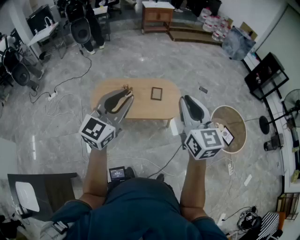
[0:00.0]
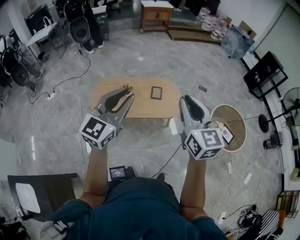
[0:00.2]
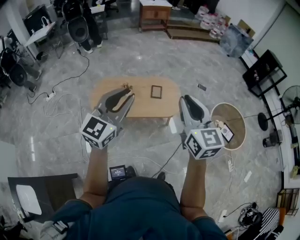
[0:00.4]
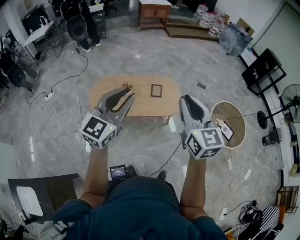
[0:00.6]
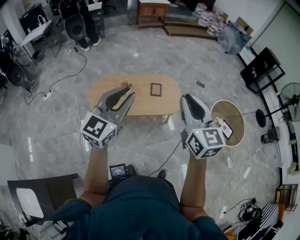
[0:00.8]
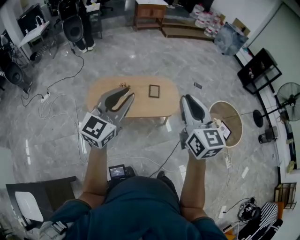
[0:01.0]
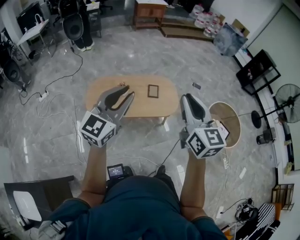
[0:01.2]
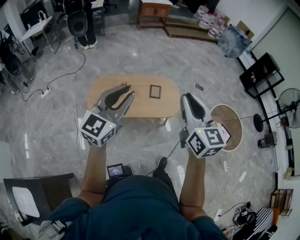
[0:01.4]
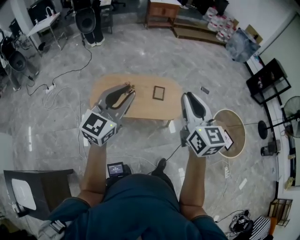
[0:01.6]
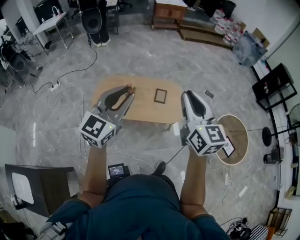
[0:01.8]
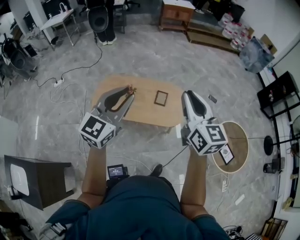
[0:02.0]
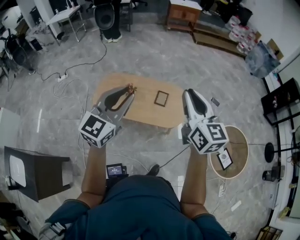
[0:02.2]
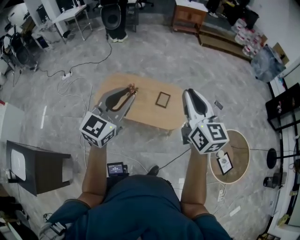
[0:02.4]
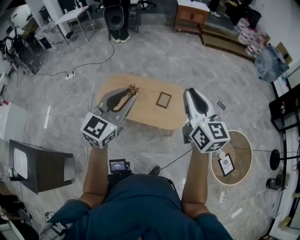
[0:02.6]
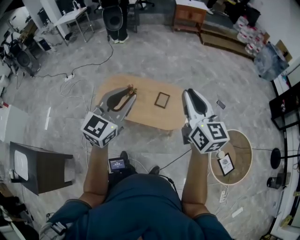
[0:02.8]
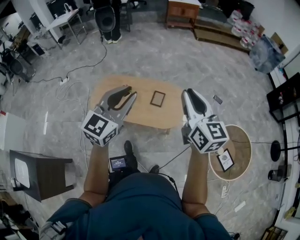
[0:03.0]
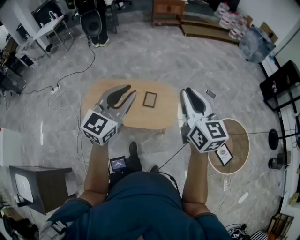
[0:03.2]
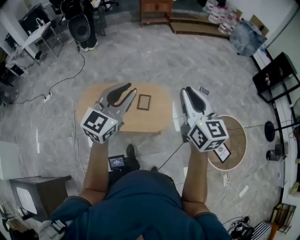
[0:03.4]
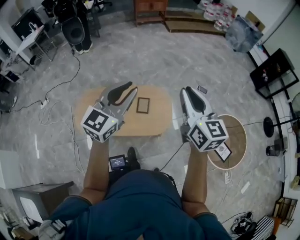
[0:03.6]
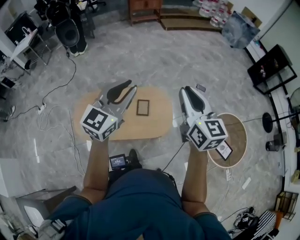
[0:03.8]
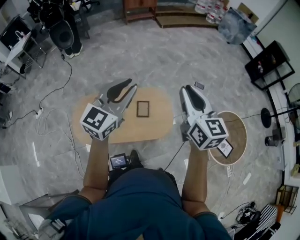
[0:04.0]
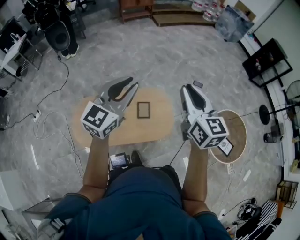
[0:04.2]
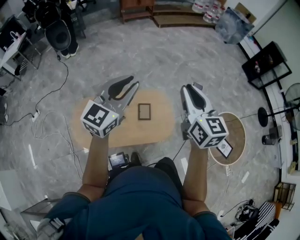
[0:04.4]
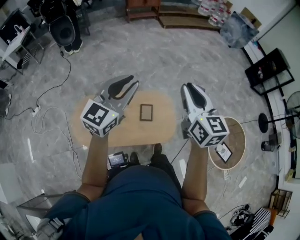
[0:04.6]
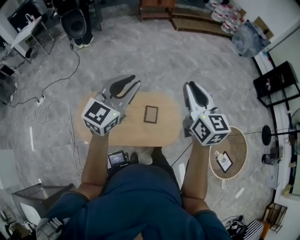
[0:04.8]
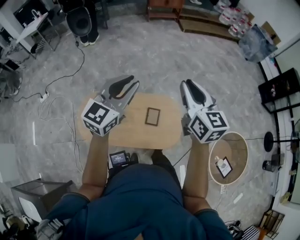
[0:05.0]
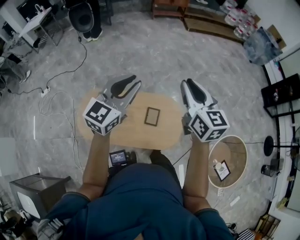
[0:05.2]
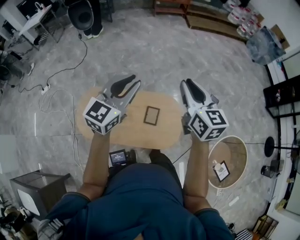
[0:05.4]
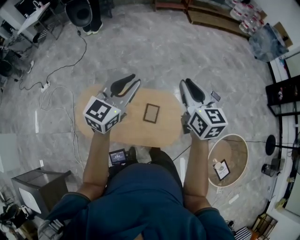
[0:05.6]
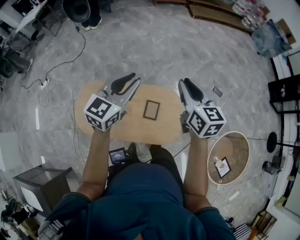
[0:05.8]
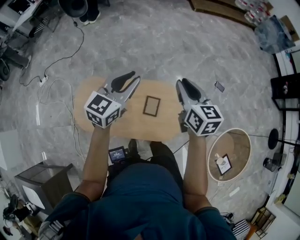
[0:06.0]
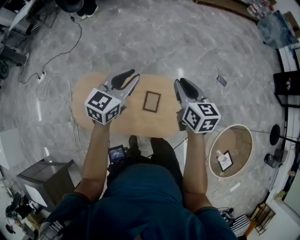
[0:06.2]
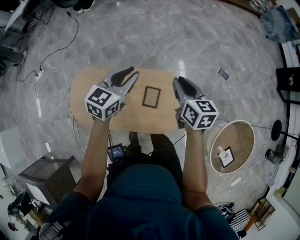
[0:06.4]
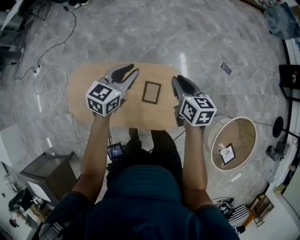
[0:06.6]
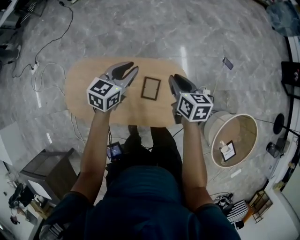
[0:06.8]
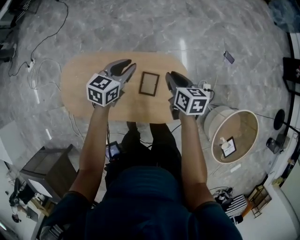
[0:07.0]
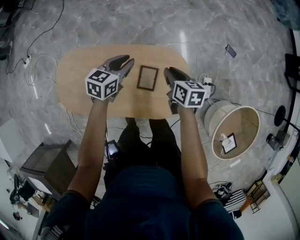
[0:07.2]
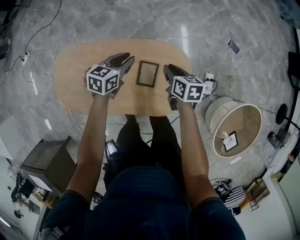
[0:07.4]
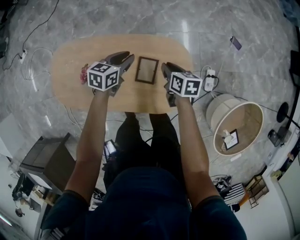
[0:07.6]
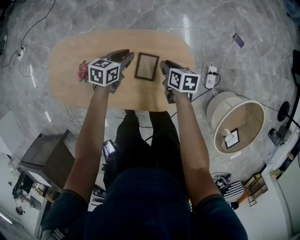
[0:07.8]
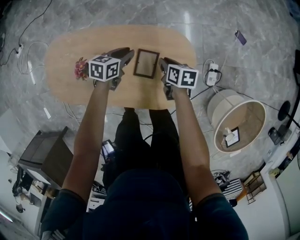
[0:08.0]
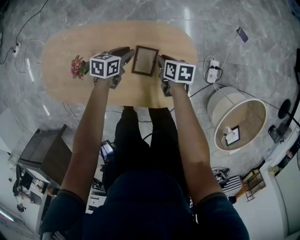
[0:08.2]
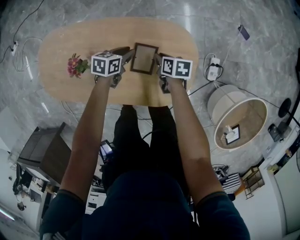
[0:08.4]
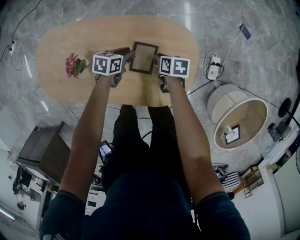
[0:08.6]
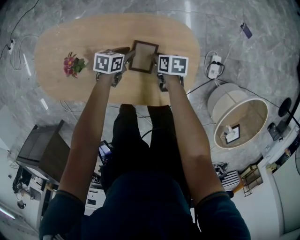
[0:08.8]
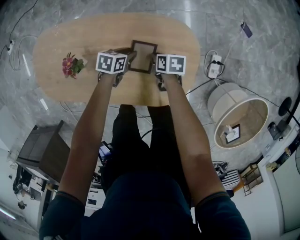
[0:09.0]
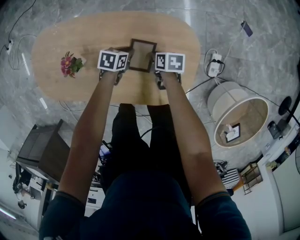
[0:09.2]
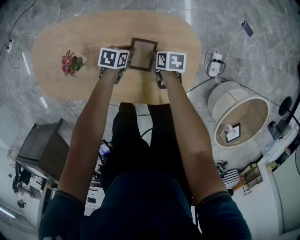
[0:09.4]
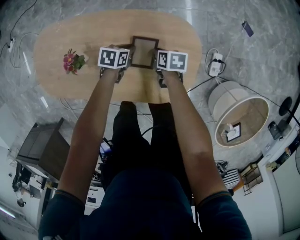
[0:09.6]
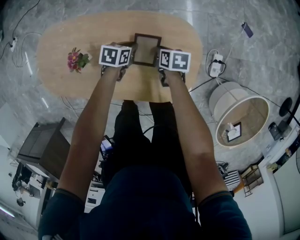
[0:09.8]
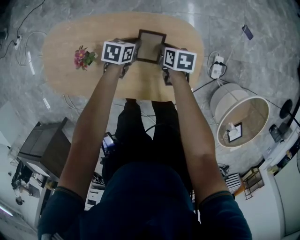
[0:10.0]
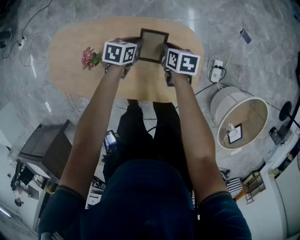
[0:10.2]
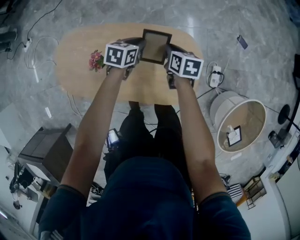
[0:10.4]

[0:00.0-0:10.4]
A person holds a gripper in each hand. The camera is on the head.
0:00.0 to 0:01.4: The left gripper goes roughly 5 cm to the left. Meanwhile the right gripper changes place by roughly 5 cm.
0:01.4 to 0:03.0: Both grippers move to the right and forward, some 25 cm.
0:03.0 to 0:04.4: Both grippers travel together forward, some 25 cm. The left gripper changes its angle by some 20 degrees, while the right gripper rotates approximately 20 degrees.
0:04.4 to 0:06.0: The grippers both shift forward and downward by some 25 cm. The left gripper changes its angle by roughly 20 degrees, while the right gripper swivels some 20 degrees.
0:06.0 to 0:07.4: Both grippers move downward, some 40 cm. The left gripper turns by approximately 30 degrees. Meanwhile the right gripper changes its angle by approximately 30 degrees.
0:07.4 to 0:09.0: The grippers both shift downward by roughly 25 cm. The left gripper swivels approximately 30 degrees, while the right gripper changes its angle by roughly 20 degrees.
0:09.0 to 0:10.4: The grippers both shift upward by roughly 20 cm. The right gripper turns by some 20 degrees.

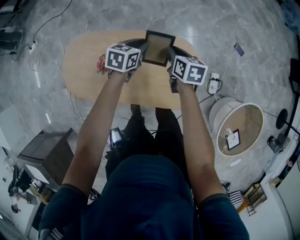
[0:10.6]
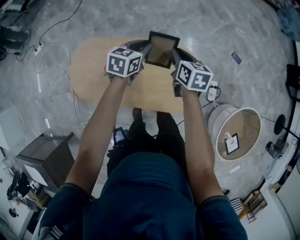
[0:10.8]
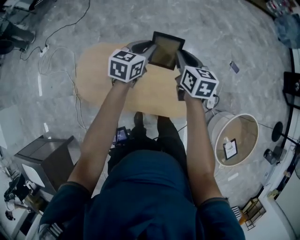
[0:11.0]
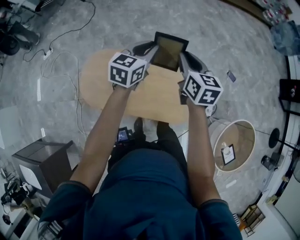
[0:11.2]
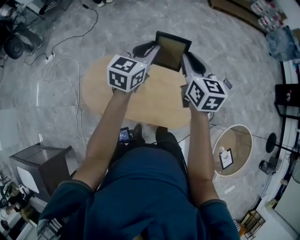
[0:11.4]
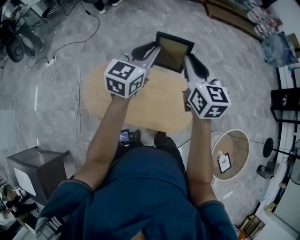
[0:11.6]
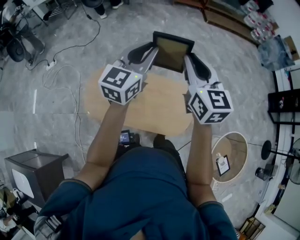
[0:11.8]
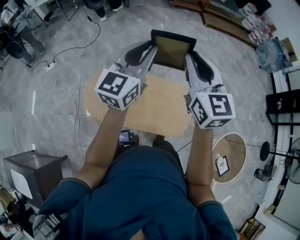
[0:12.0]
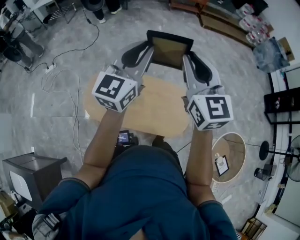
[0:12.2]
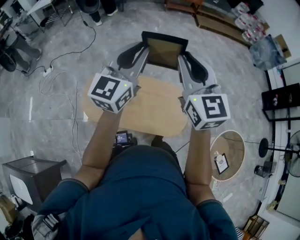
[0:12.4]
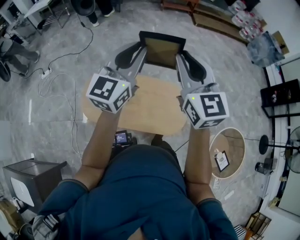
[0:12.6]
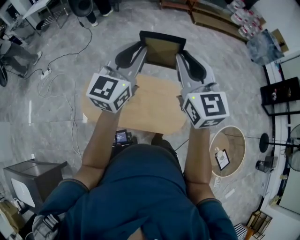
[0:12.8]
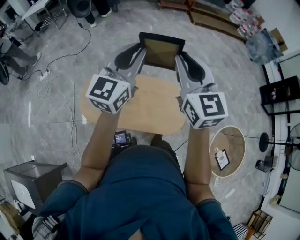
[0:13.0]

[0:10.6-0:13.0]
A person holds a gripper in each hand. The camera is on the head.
0:10.6 to 0:11.8: Both grippers move upward, approximately 50 cm. The right gripper tips its fingers upward by approximately 30 degrees, while the left gripper tips its fingers upward by about 40 degrees.
0:11.8 to 0:13.0: The two grippers go roughly 5 cm backward.

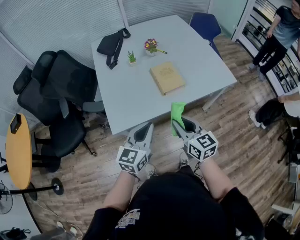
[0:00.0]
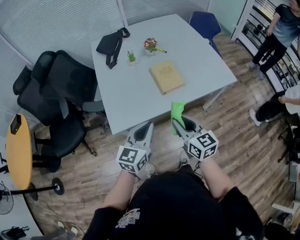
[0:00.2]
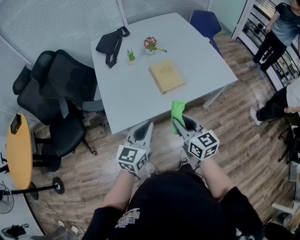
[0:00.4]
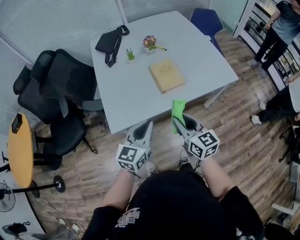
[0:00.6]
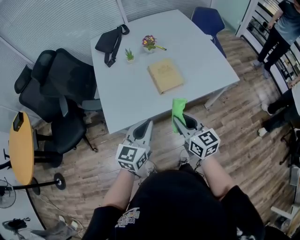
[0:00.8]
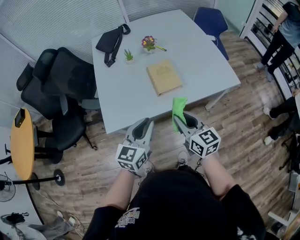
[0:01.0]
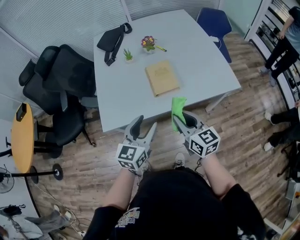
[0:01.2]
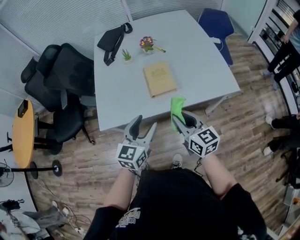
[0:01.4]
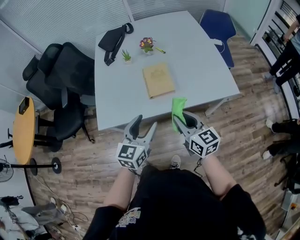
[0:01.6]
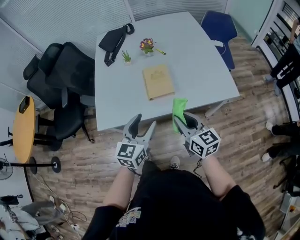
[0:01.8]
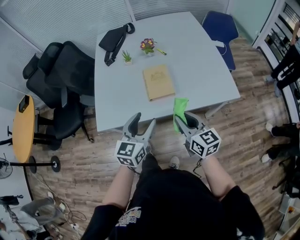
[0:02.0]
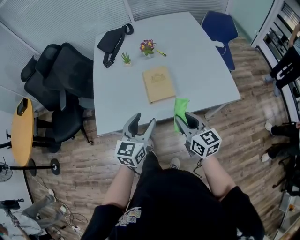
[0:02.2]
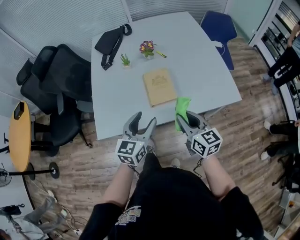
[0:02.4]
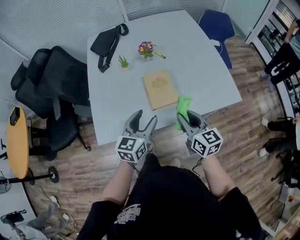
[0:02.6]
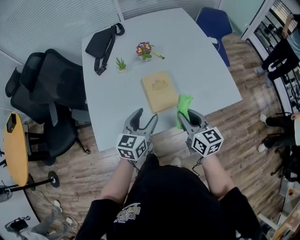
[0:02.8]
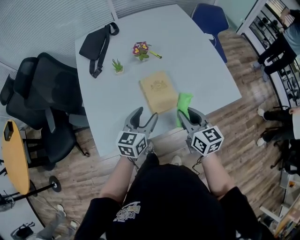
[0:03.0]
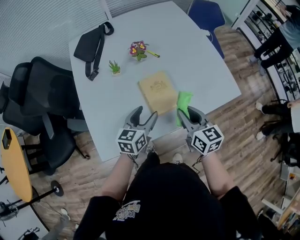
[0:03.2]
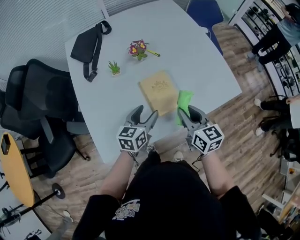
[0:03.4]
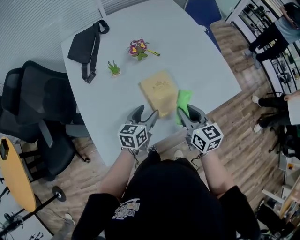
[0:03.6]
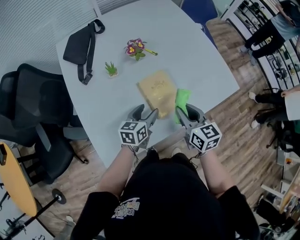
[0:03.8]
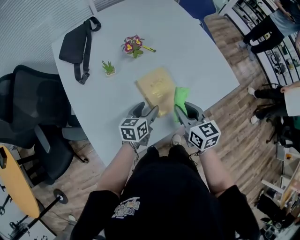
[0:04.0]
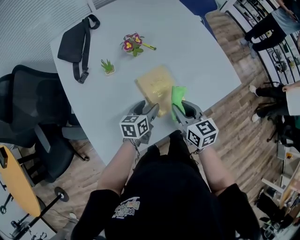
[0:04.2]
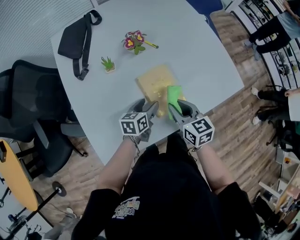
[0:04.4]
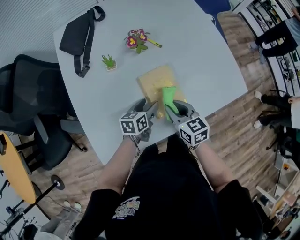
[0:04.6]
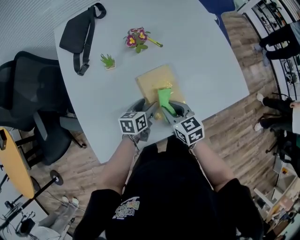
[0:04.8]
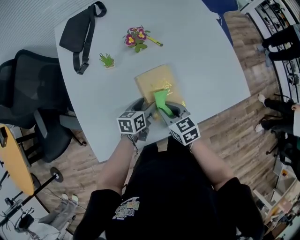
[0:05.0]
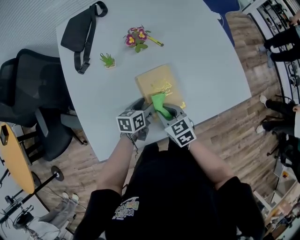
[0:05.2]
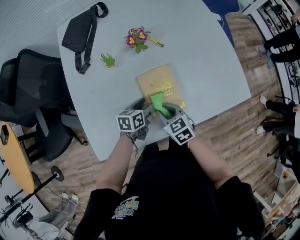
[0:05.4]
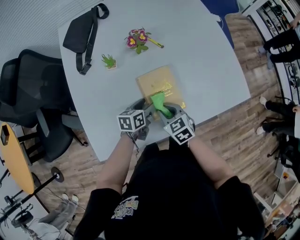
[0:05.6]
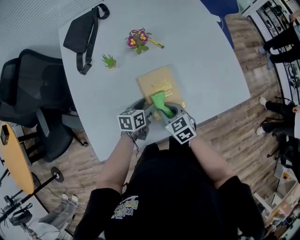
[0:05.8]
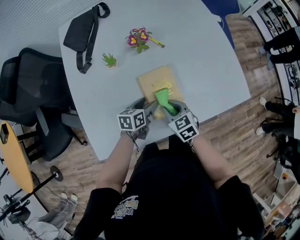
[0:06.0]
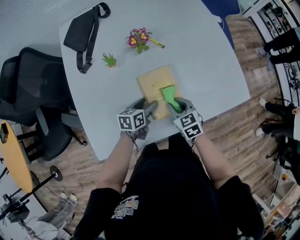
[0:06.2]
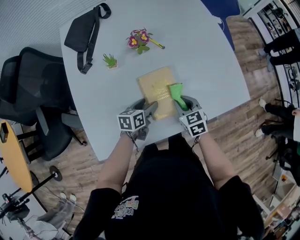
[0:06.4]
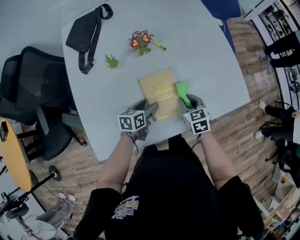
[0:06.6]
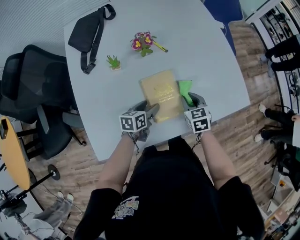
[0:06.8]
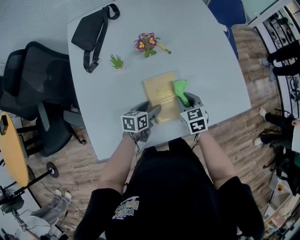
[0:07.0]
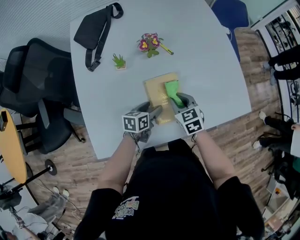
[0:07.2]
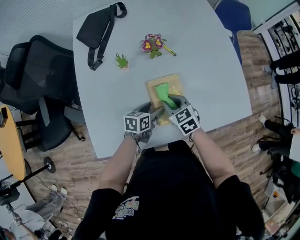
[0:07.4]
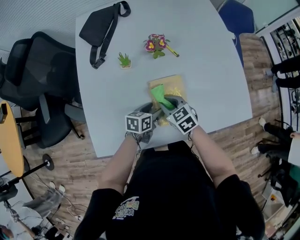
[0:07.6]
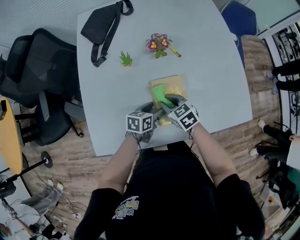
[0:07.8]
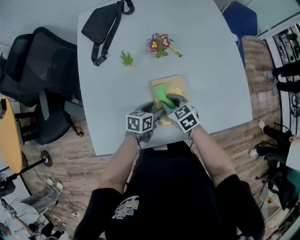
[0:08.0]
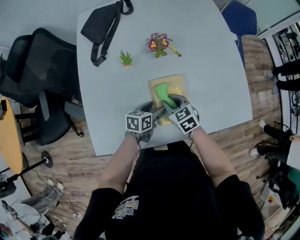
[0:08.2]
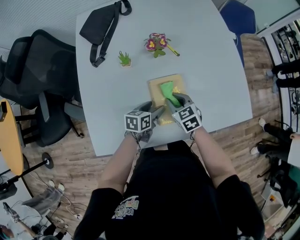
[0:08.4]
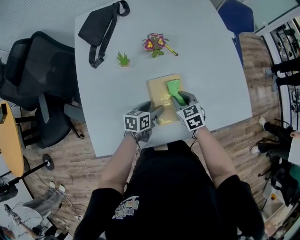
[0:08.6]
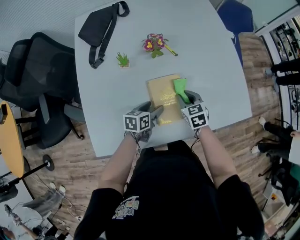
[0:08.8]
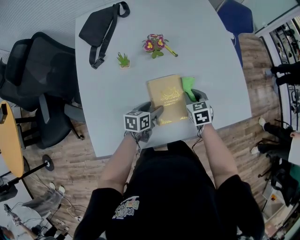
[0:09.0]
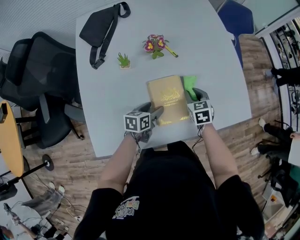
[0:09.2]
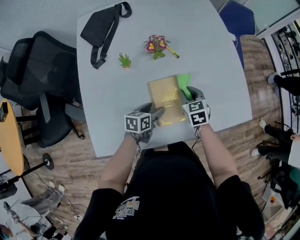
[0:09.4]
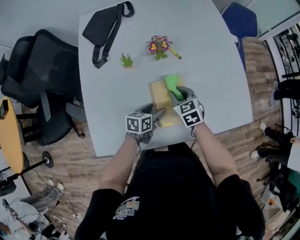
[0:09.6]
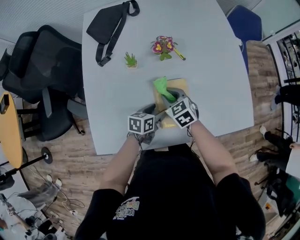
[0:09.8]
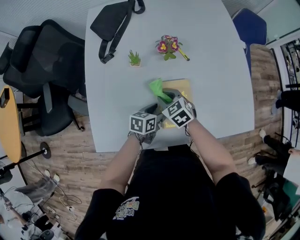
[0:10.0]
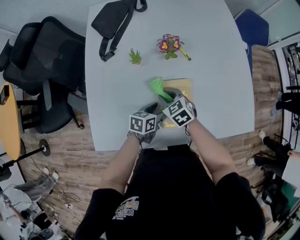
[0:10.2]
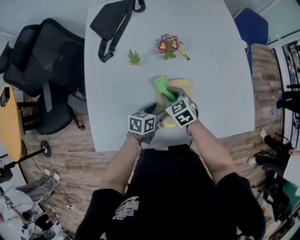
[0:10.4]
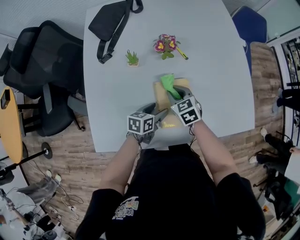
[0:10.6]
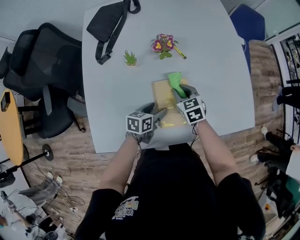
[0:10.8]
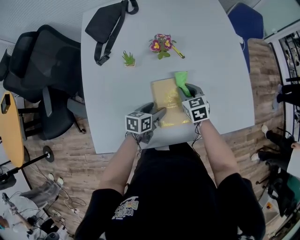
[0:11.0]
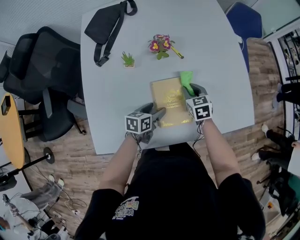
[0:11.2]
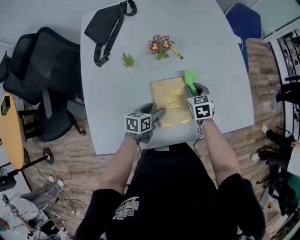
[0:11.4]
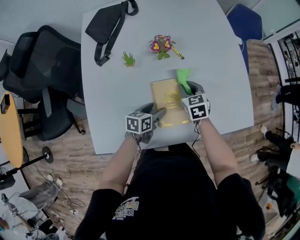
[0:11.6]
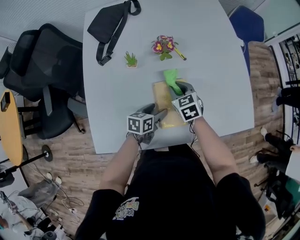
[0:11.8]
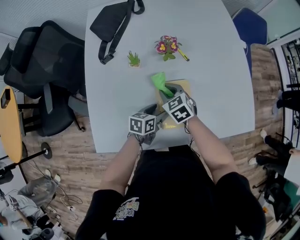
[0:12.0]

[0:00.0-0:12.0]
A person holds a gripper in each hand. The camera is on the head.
0:00.0 to 0:01.6: Both grippers move to the right and forward, roughly 15 cm. The left gripper opens its fingers.
0:01.6 to 0:03.0: The grippers both shift forward by approximately 15 cm.
0:03.0 to 0:04.4: The right gripper shifts approximately 10 cm downward, to the left and forward, while the left gripper goes roughly 15 cm downward and forward, and turns by roughly 30 degrees.
0:04.4 to 0:06.0: The right gripper heads downward, covering about 10 cm, and changes its angle by approximately 30 degrees.
0:06.0 to 0:07.6: The right gripper travels to the left by roughly 5 cm.
0:07.6 to 0:09.0: The right gripper travels to the right and forward by about 15 cm, and rotates roughly 30 degrees.
0:09.0 to 0:10.4: The right gripper is displaced to the left by roughly 15 cm, and swivels approximately 30 degrees.
0:10.4 to 0:12.0: The right gripper travels to the right and back again, approximately 15 cm each way.
